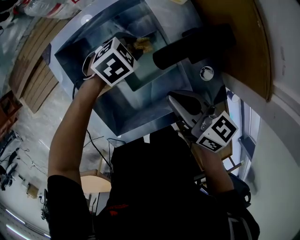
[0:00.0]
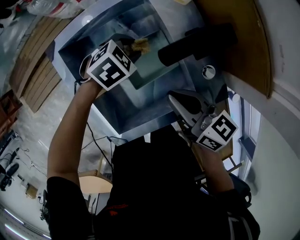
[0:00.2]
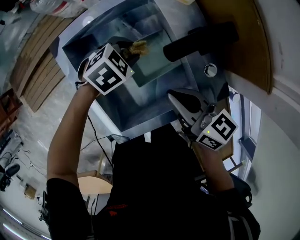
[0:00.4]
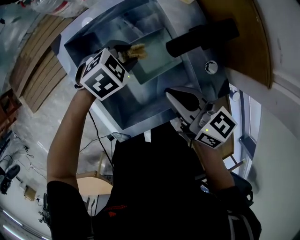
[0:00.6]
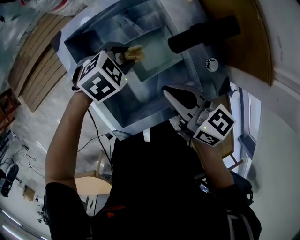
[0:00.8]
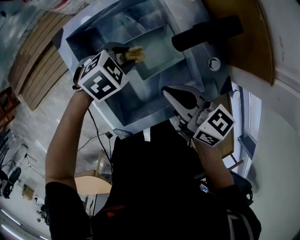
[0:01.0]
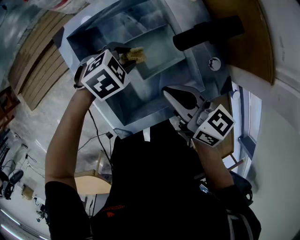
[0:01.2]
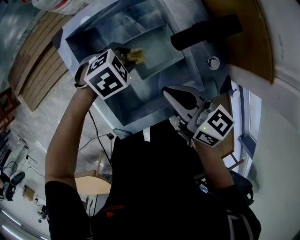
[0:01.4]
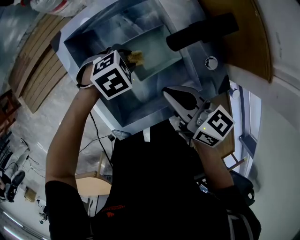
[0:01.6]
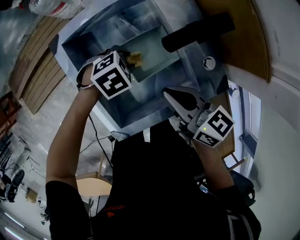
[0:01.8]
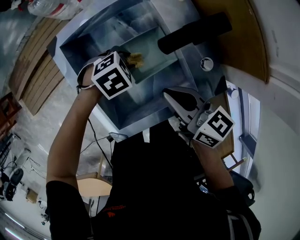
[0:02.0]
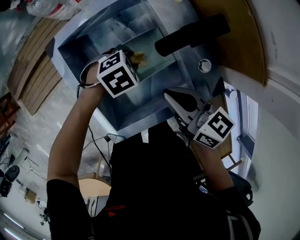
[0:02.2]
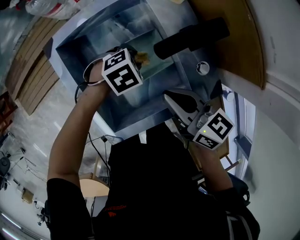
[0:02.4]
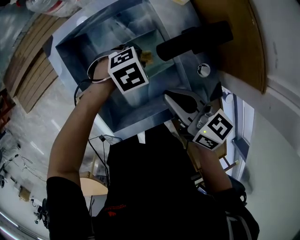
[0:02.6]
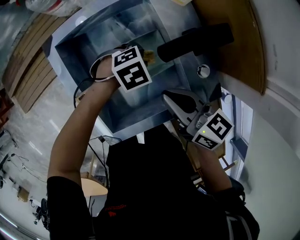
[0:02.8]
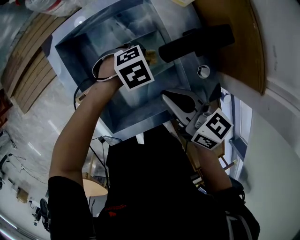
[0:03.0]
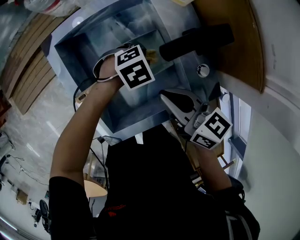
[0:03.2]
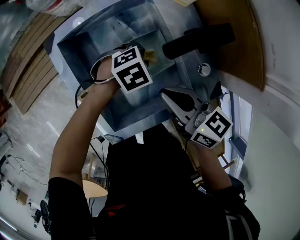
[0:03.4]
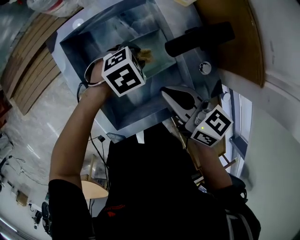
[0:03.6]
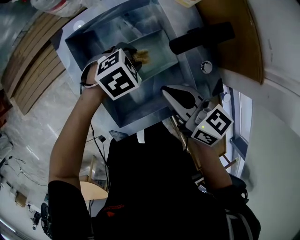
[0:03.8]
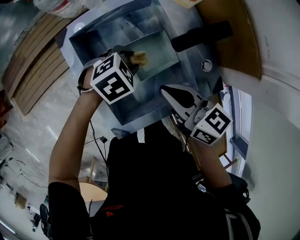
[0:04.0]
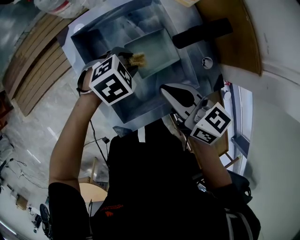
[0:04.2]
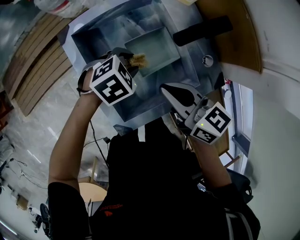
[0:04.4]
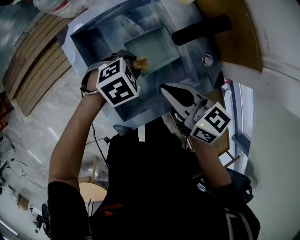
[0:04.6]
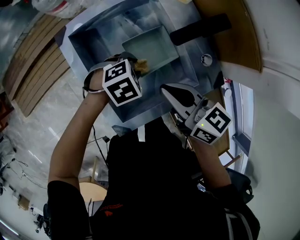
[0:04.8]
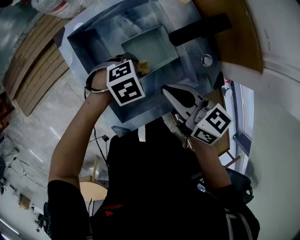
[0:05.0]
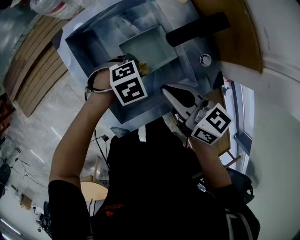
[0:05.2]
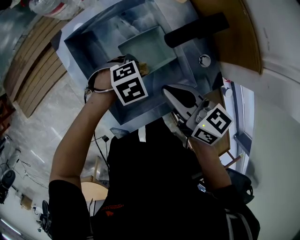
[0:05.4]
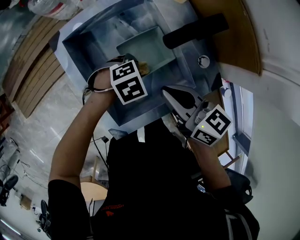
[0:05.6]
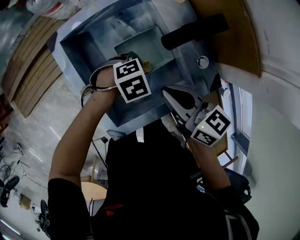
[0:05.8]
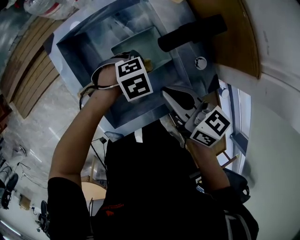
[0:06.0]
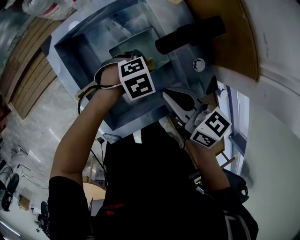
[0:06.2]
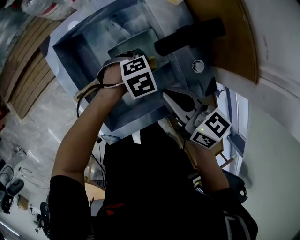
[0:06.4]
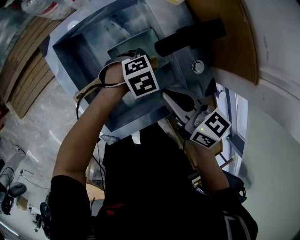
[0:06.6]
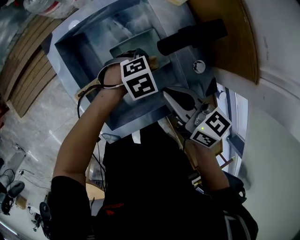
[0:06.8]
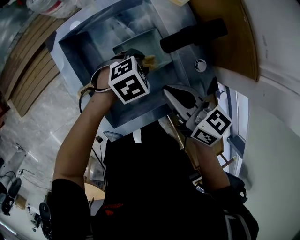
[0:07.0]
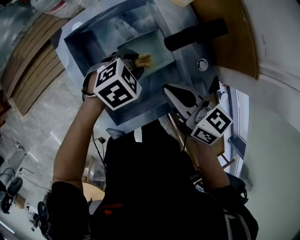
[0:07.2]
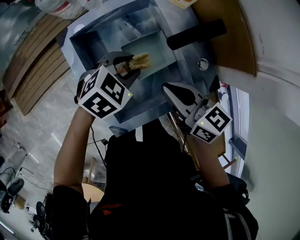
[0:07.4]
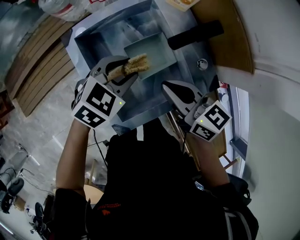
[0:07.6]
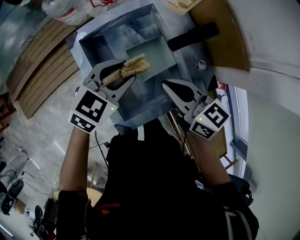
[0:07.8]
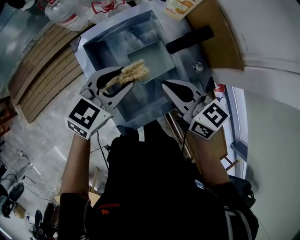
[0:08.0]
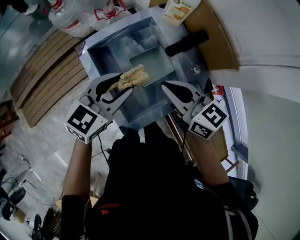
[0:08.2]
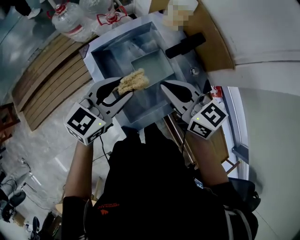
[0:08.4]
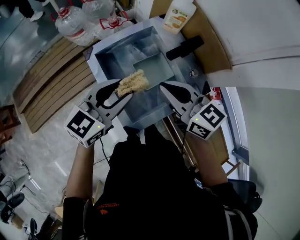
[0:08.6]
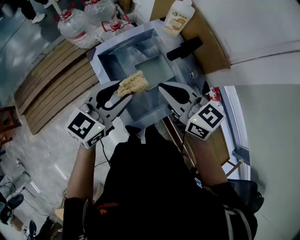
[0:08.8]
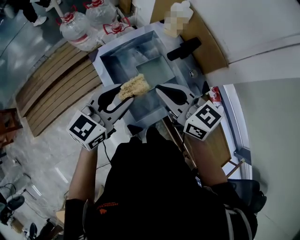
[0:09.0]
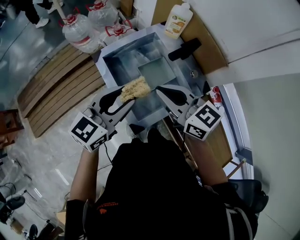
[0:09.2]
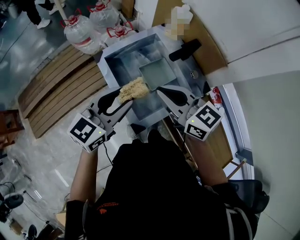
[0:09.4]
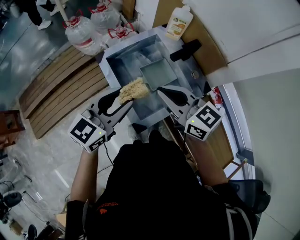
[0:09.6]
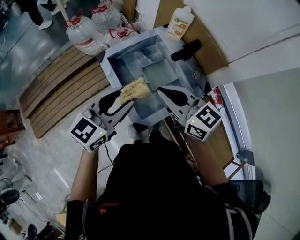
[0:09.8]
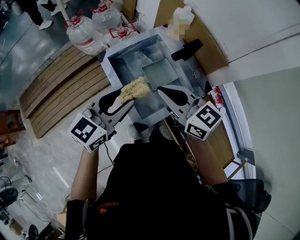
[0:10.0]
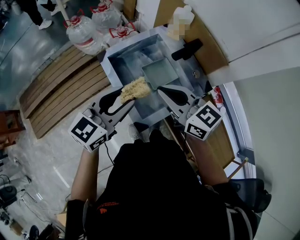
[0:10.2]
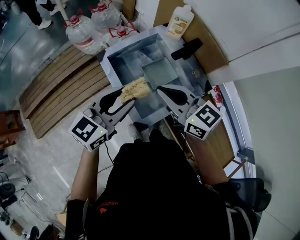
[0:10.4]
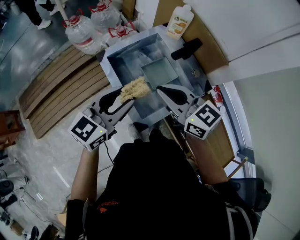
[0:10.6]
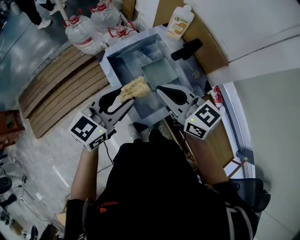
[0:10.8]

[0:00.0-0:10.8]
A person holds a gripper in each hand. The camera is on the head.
0:00.0 to 0:01.6: The right gripper moves roughly 5 cm; the left gripper ends up roughly 10 cm from where it was.
0:01.6 to 0:03.0: The left gripper ends up roughly 10 cm from where it was.
0:03.0 to 0:04.6: The right gripper changes place by about 5 cm; the left gripper moves roughly 10 cm.
0:04.6 to 0:06.2: The left gripper changes place by about 10 cm. Meanwhile the right gripper shifts by approximately 5 cm.
0:06.2 to 0:07.8: The left gripper is displaced upward by roughly 20 cm, and tilts its fingers some 30 degrees upward; the right gripper moves upward, some 5 cm.
0:07.8 to 0:09.2: The left gripper is displaced upward, backward and to the left by about 20 cm, and rotates approximately 30 degrees. The right gripper heads upward, to the left and backward, covering roughly 15 cm.
0:09.2 to 0:10.8: The grippers move only a little.

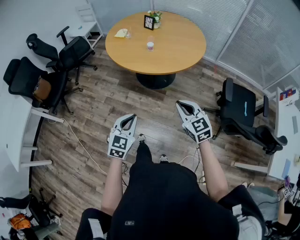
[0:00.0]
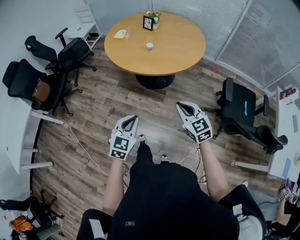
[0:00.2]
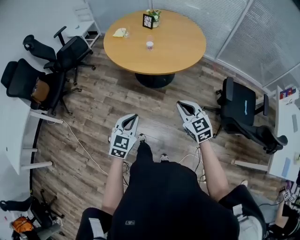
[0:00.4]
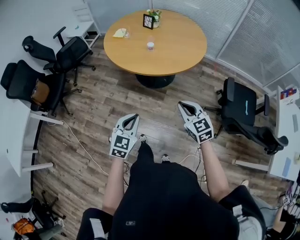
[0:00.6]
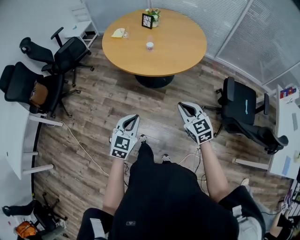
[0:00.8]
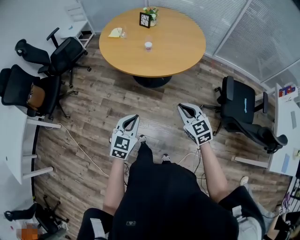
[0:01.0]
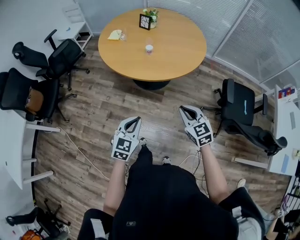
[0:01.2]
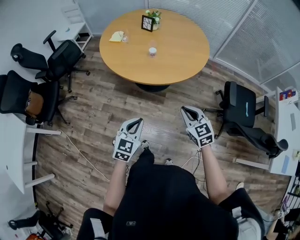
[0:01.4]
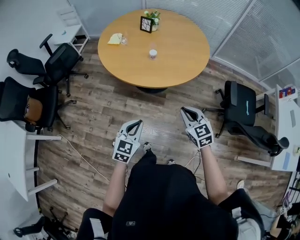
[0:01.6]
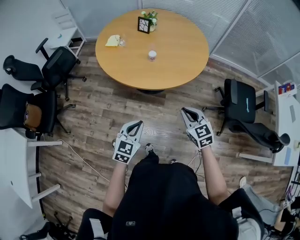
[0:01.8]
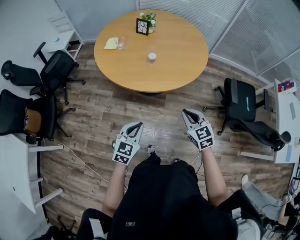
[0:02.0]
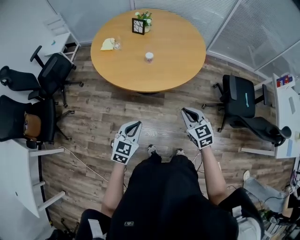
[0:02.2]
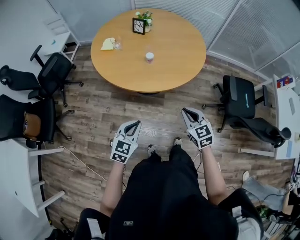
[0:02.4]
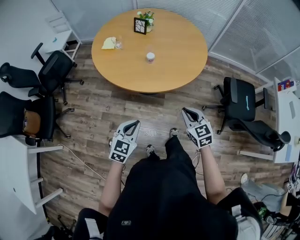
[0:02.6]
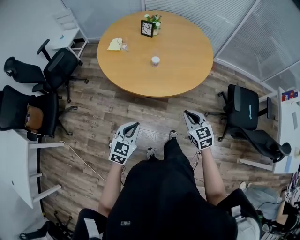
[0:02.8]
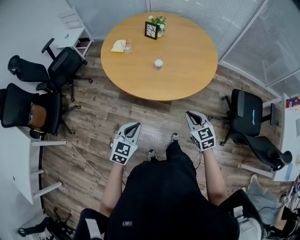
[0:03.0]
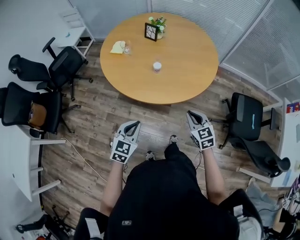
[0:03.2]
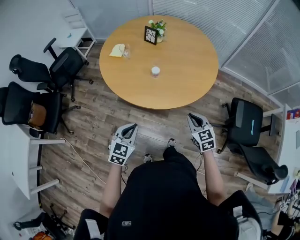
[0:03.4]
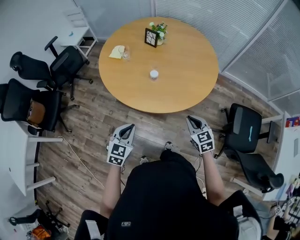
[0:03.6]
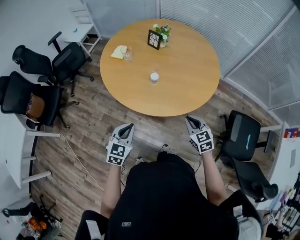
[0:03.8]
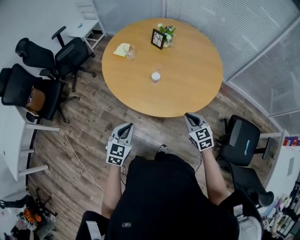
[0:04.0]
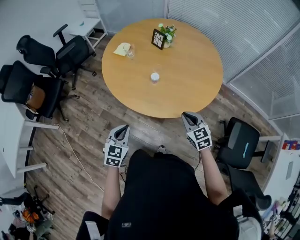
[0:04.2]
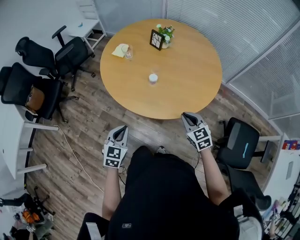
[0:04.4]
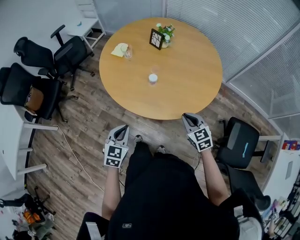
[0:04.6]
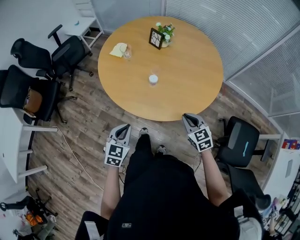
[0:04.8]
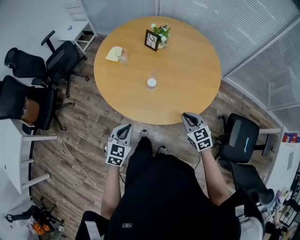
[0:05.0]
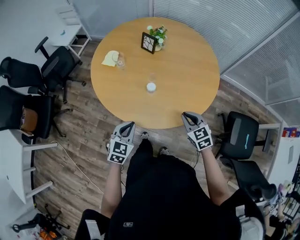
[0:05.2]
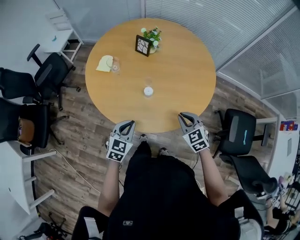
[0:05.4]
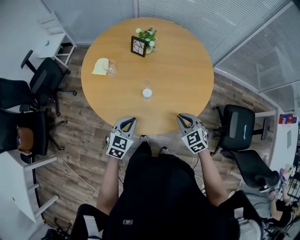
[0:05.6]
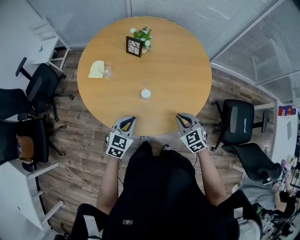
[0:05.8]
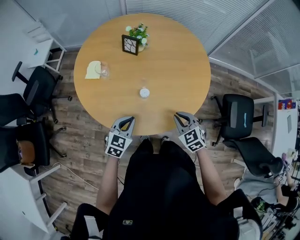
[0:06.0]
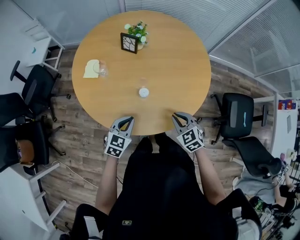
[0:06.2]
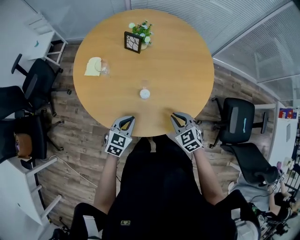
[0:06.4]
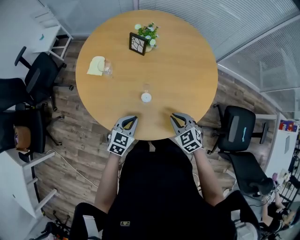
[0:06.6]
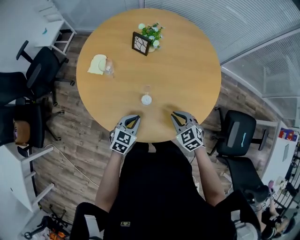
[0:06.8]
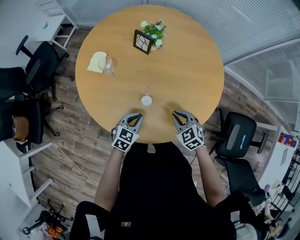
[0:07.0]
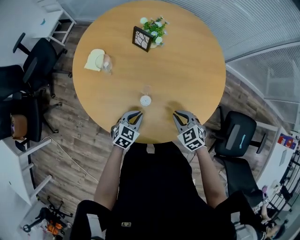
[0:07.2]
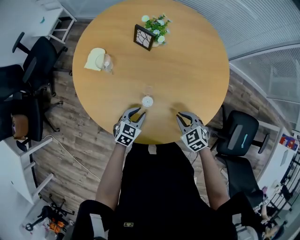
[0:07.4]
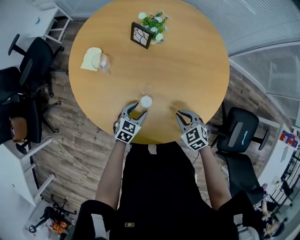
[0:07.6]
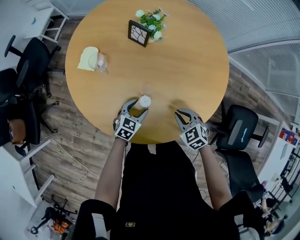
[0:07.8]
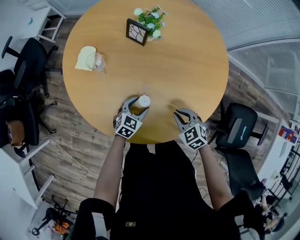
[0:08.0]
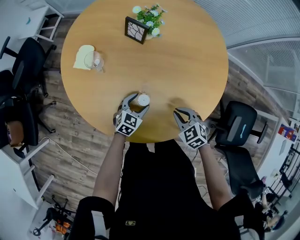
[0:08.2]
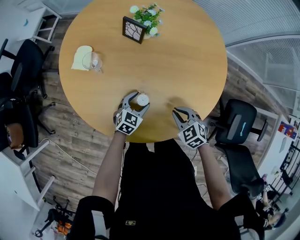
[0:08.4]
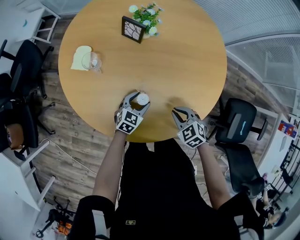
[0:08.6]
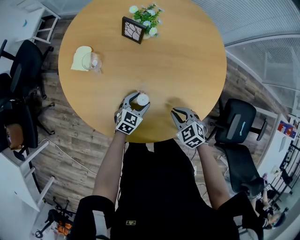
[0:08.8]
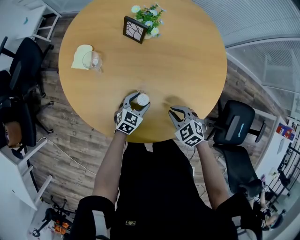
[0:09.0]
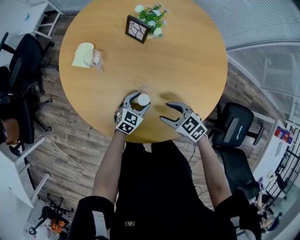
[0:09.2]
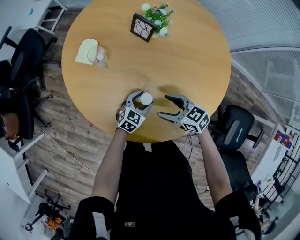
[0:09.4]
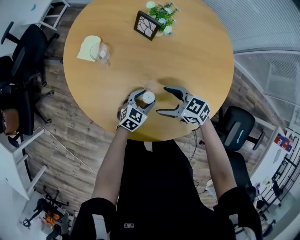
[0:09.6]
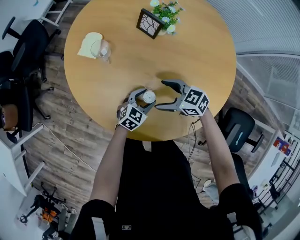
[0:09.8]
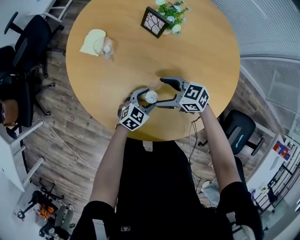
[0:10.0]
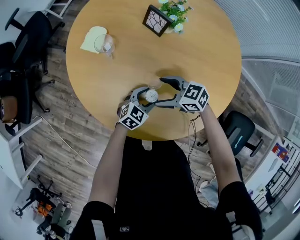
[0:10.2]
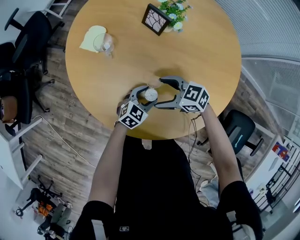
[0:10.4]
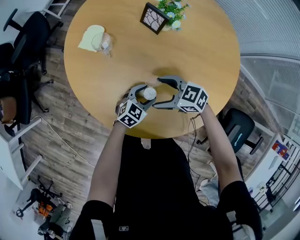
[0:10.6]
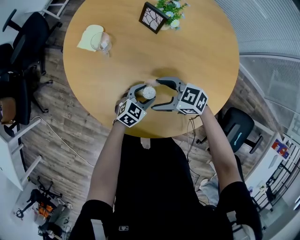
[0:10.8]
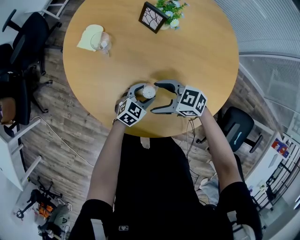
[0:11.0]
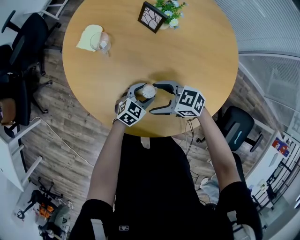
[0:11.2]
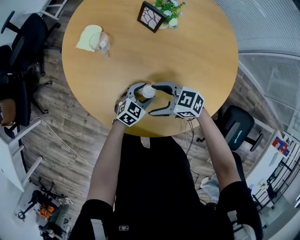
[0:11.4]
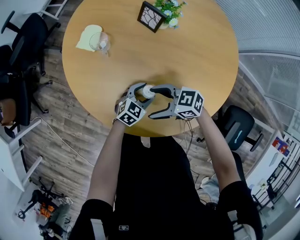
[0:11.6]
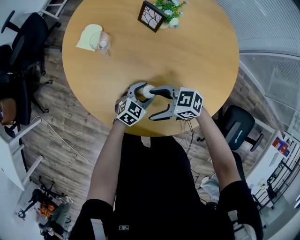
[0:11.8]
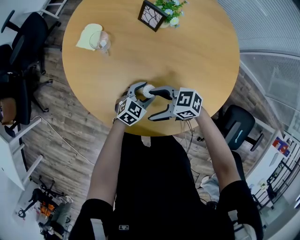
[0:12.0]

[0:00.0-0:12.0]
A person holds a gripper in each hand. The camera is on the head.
0:00.0 to 0:01.6: Both grippers move forward and to the left, some 15 cm.
0:01.6 to 0:03.0: The two grippers go about 10 cm forward.
0:03.0 to 0:04.4: The left gripper heads forward and to the right, covering about 10 cm, and swivels about 20 degrees. The right gripper moves forward and to the right, approximately 15 cm.
0:04.4 to 0:06.0: The right gripper moves some 10 cm. The left gripper changes place by roughly 20 cm, and turns by some 30 degrees.
0:06.0 to 0:07.6: The right gripper moves forward and downward, roughly 15 cm. The left gripper shifts approximately 15 cm downward and forward, and opens.
0:07.6 to 0:09.0: The left gripper ends up some 5 cm from where it was.
0:09.0 to 0:10.4: The right gripper moves approximately 15 cm, changes its angle by roughly 40 degrees, and opens up.
0:10.4 to 0:12.0: The right gripper changes place by some 5 cm.

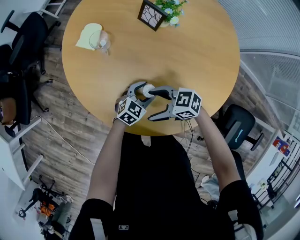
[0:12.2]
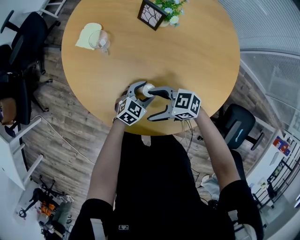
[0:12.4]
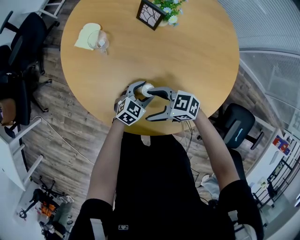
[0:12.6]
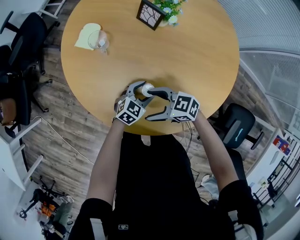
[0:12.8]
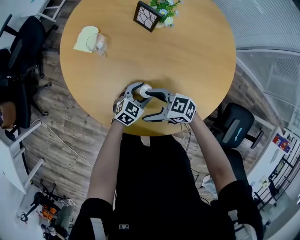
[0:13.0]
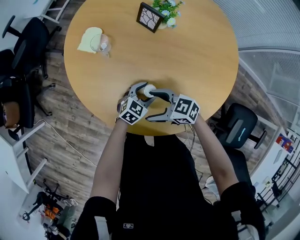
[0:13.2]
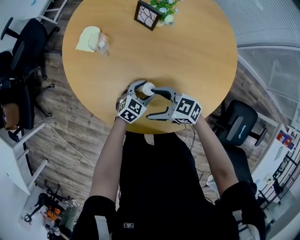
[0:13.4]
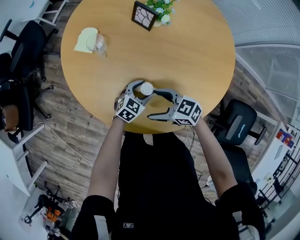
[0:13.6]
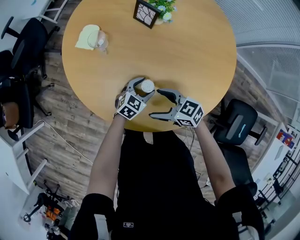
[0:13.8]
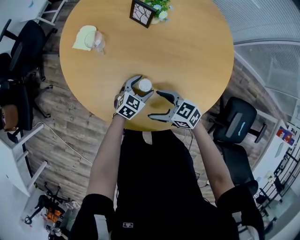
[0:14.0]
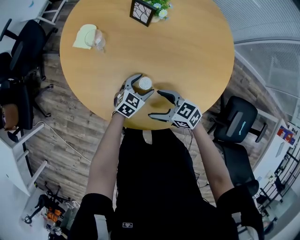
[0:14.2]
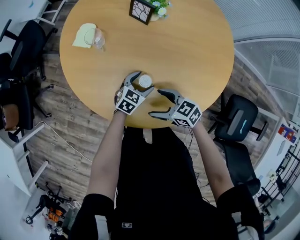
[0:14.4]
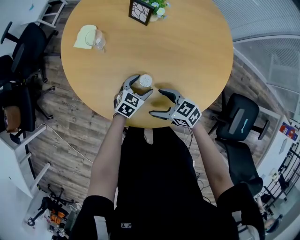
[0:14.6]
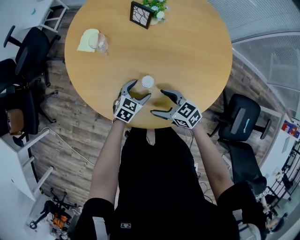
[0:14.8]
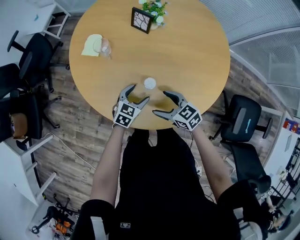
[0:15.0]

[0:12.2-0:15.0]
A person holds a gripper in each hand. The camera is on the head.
0:12.2 to 0:13.6: The grippers make only small movements.
0:13.6 to 0:15.0: The left gripper ends up about 5 cm from where it was; the right gripper turns by approximately 20 degrees.
